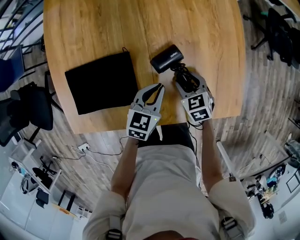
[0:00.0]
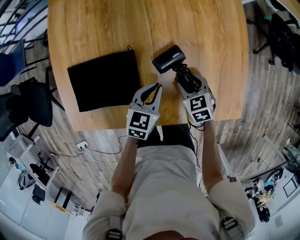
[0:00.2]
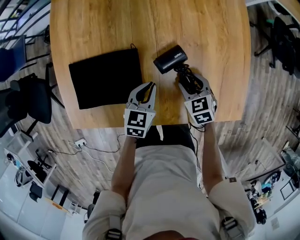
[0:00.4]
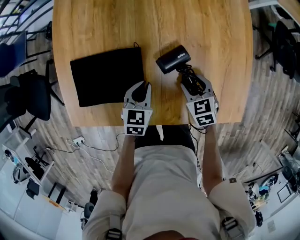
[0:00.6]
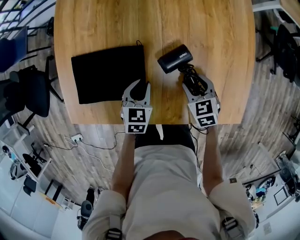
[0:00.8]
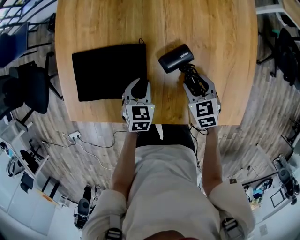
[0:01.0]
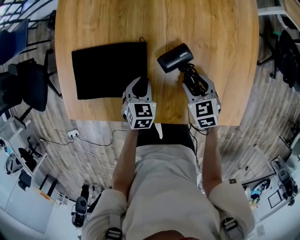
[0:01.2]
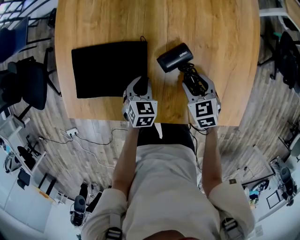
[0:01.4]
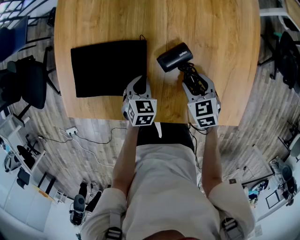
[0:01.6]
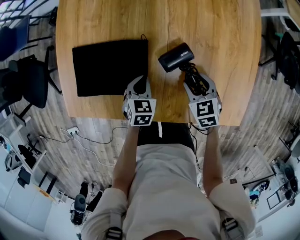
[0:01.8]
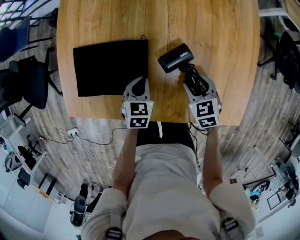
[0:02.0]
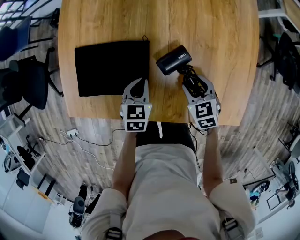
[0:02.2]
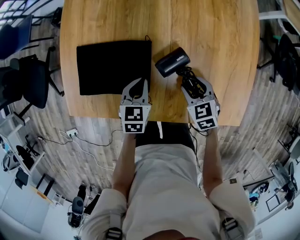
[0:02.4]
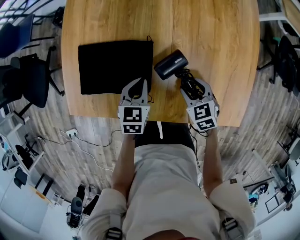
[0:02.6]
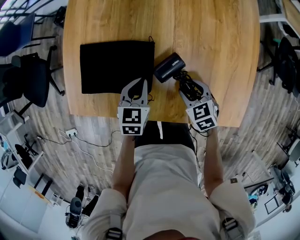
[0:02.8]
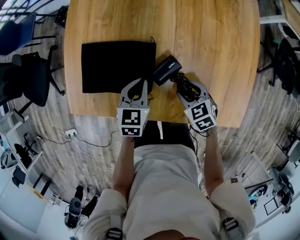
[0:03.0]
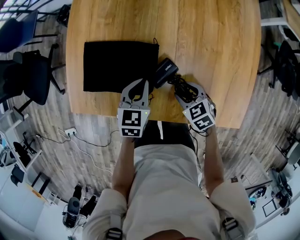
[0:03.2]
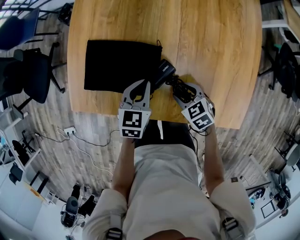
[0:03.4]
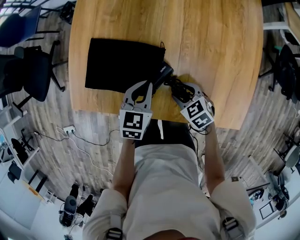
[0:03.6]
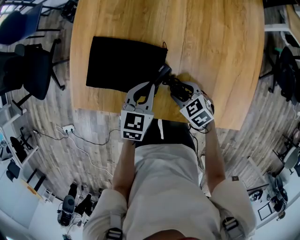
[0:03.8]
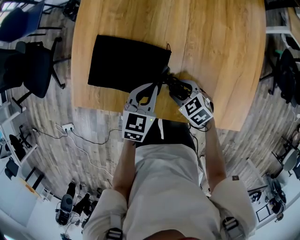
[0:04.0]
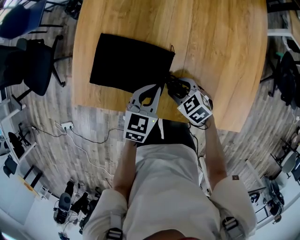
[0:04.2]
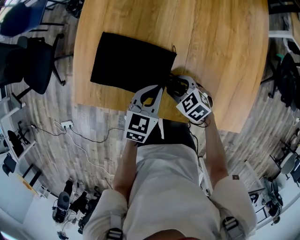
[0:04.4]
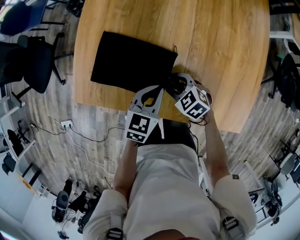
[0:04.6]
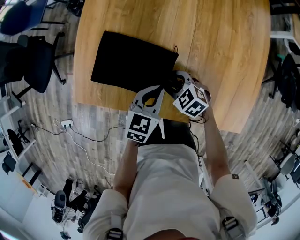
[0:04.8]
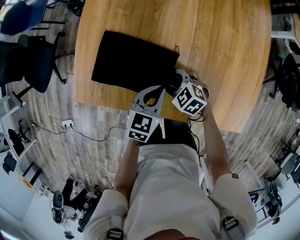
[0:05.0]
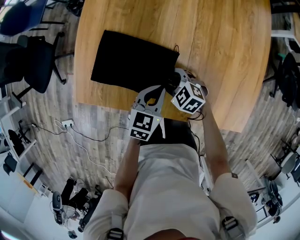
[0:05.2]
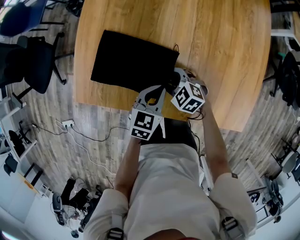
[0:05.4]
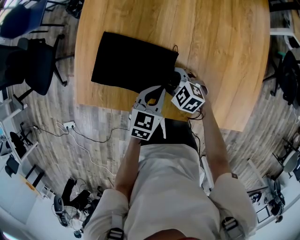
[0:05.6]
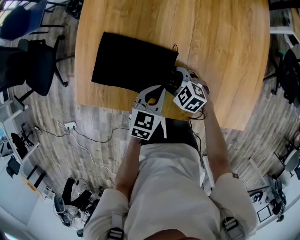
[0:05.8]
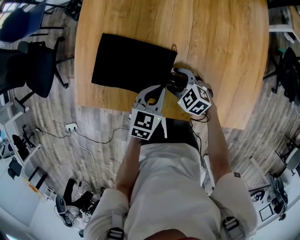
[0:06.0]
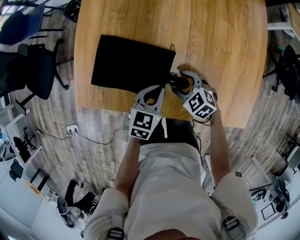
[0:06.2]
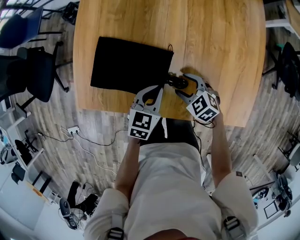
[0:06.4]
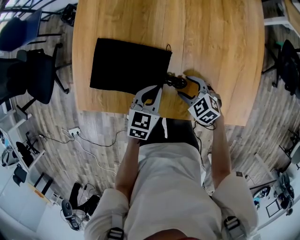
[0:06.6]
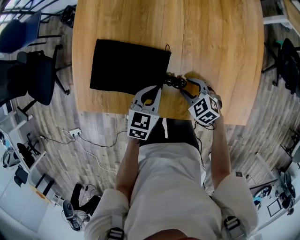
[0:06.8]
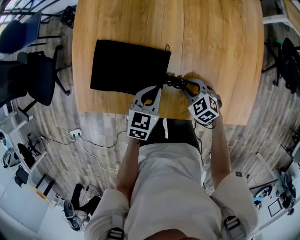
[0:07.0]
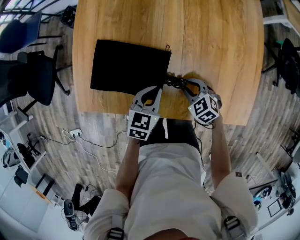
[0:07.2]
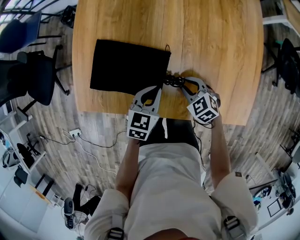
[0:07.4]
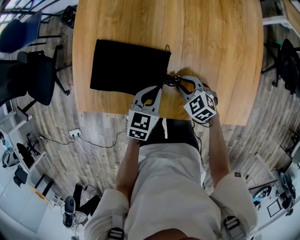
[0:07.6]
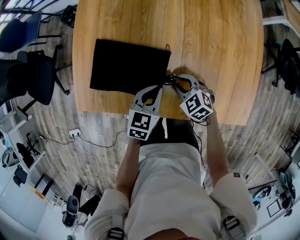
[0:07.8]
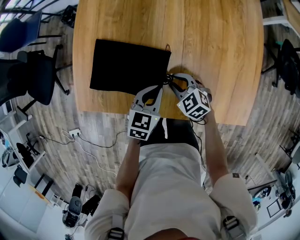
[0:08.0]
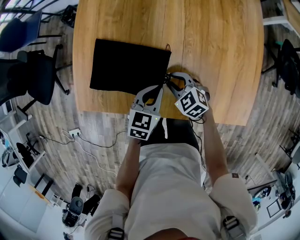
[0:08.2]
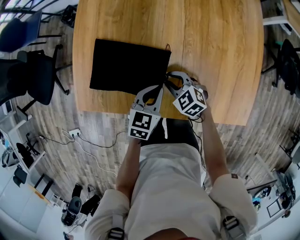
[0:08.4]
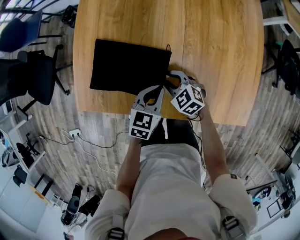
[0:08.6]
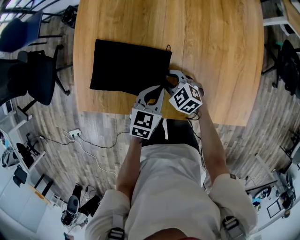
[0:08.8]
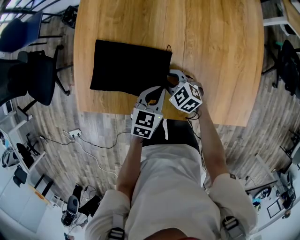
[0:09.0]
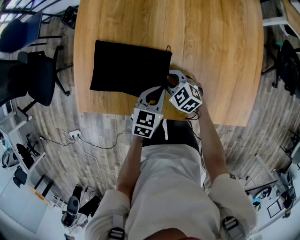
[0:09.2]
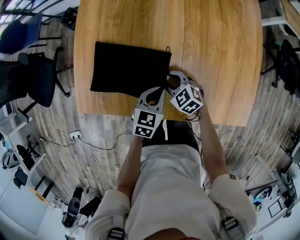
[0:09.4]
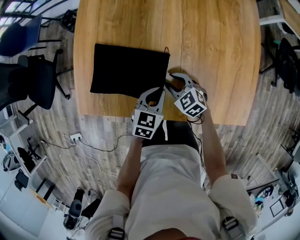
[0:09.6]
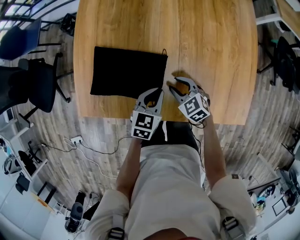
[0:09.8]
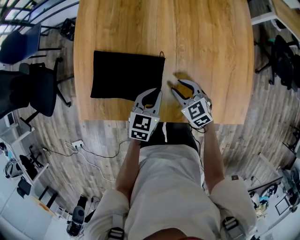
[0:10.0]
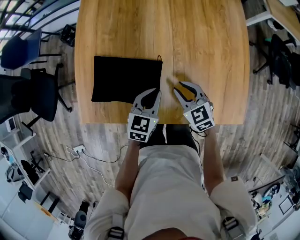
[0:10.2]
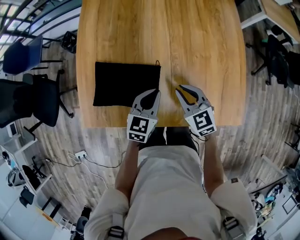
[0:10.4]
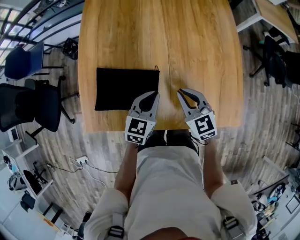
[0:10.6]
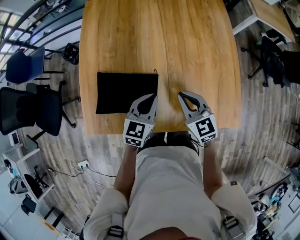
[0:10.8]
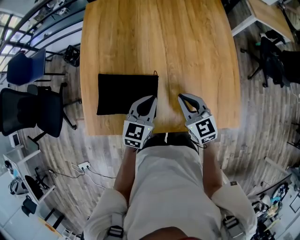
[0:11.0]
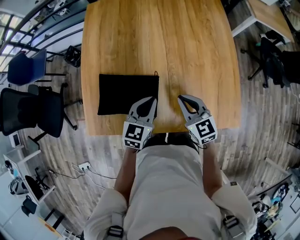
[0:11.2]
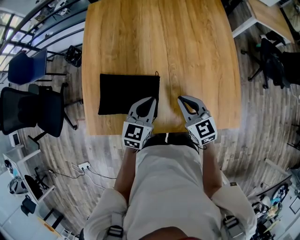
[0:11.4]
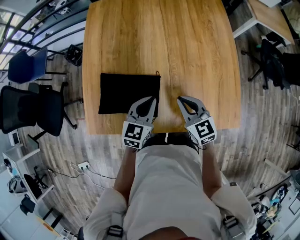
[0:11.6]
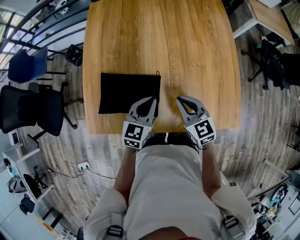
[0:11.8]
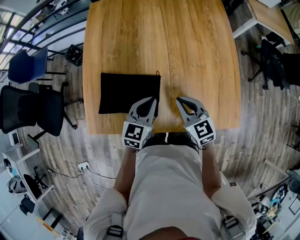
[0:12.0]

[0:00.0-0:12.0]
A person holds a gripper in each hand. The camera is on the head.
0:00.0 to 0:01.6: The left gripper moves to the left and downward, some 15 cm, and turns by roughly 30 degrees.
0:01.6 to 0:03.0: The right gripper heads to the left, covering some 5 cm. Meanwhile the left gripper goes approximately 10 cm upward.
0:03.0 to 0:04.4: The right gripper is displaced to the left by some 10 cm, and turns by some 20 degrees.
0:04.4 to 0:06.0: The grippers make only small movements.
0:06.0 to 0:07.6: The right gripper is displaced to the right by roughly 5 cm, and closes.
0:07.6 to 0:09.0: The right gripper travels to the left by about 5 cm.
0:09.0 to 0:10.4: The left gripper heads upward, covering some 5 cm, while the right gripper travels upward and to the right by some 15 cm, and turns by about 30 degrees.
0:10.4 to 0:12.0: The grippers move only a little.

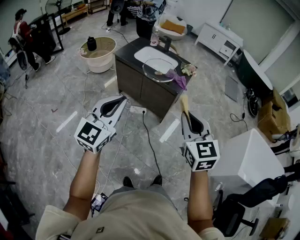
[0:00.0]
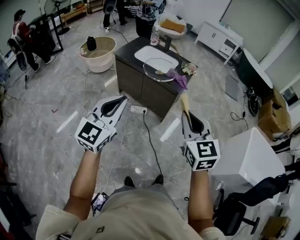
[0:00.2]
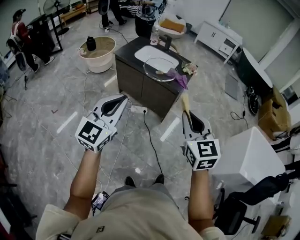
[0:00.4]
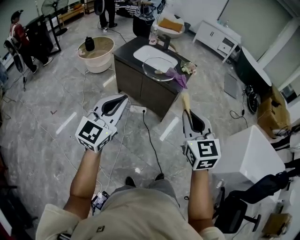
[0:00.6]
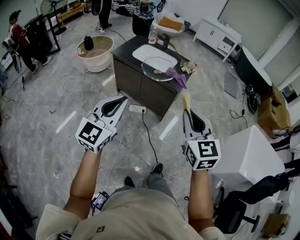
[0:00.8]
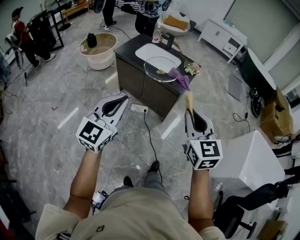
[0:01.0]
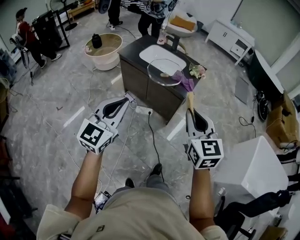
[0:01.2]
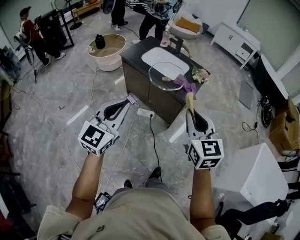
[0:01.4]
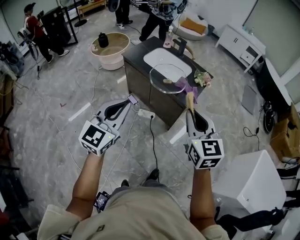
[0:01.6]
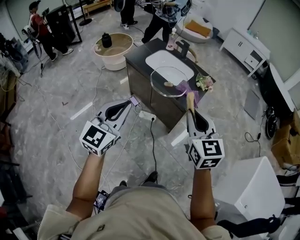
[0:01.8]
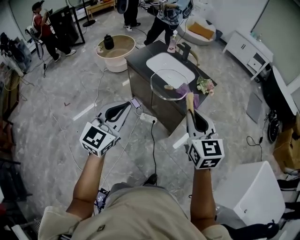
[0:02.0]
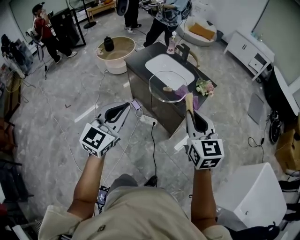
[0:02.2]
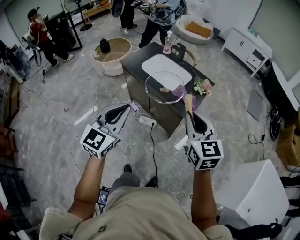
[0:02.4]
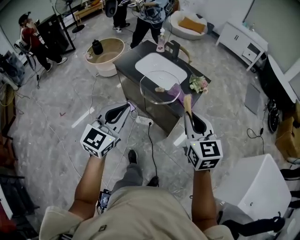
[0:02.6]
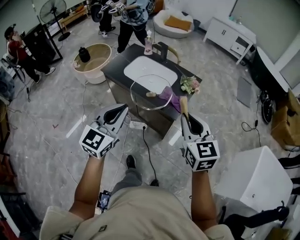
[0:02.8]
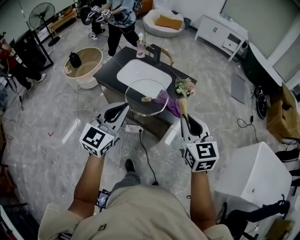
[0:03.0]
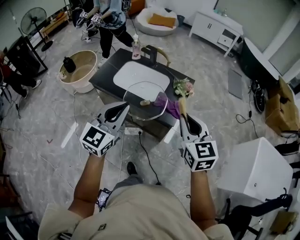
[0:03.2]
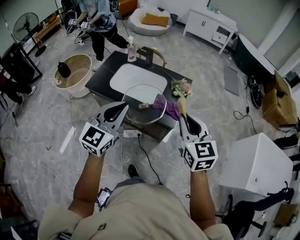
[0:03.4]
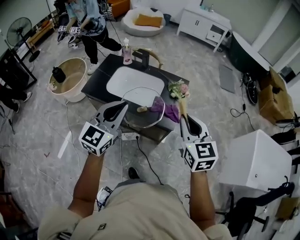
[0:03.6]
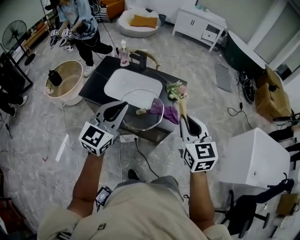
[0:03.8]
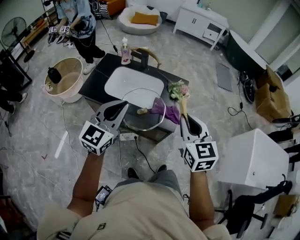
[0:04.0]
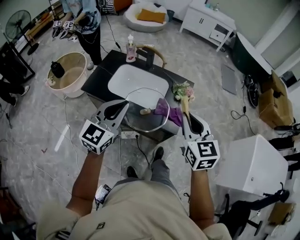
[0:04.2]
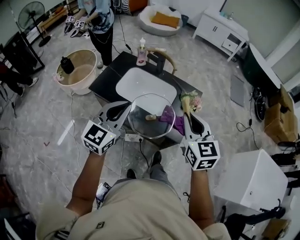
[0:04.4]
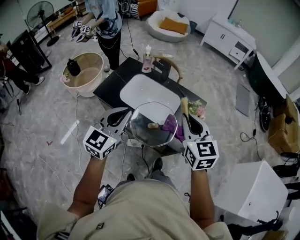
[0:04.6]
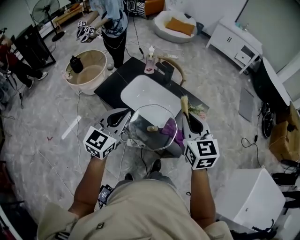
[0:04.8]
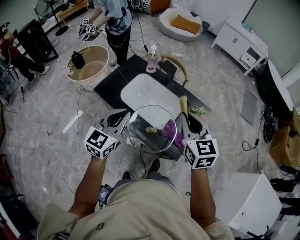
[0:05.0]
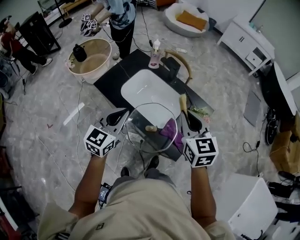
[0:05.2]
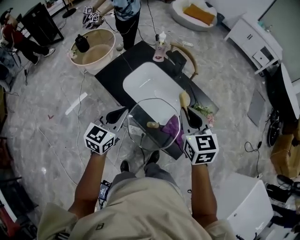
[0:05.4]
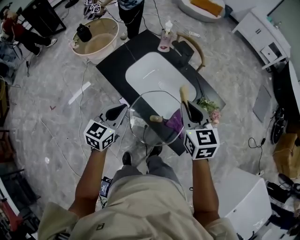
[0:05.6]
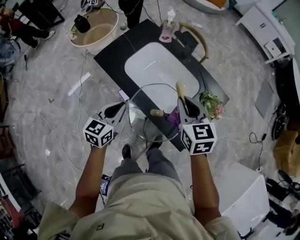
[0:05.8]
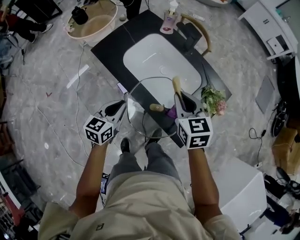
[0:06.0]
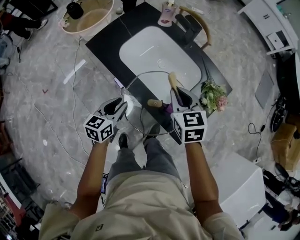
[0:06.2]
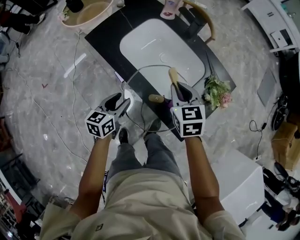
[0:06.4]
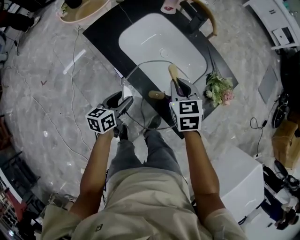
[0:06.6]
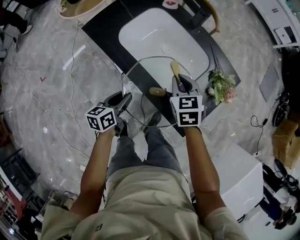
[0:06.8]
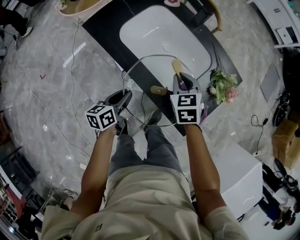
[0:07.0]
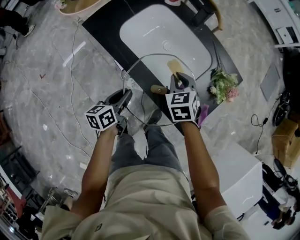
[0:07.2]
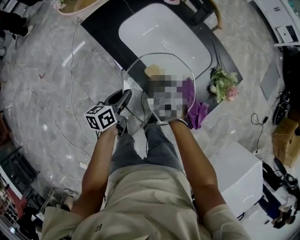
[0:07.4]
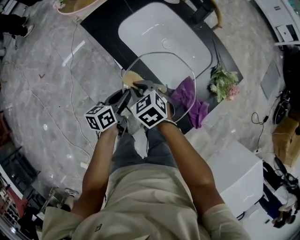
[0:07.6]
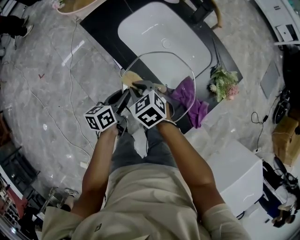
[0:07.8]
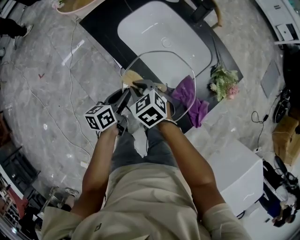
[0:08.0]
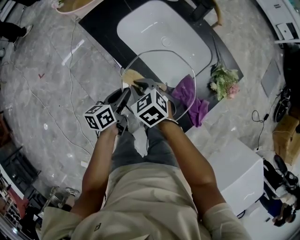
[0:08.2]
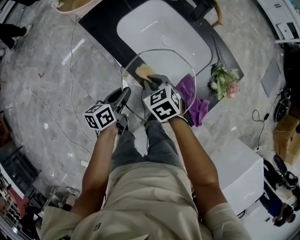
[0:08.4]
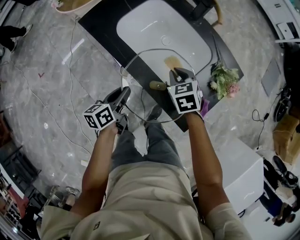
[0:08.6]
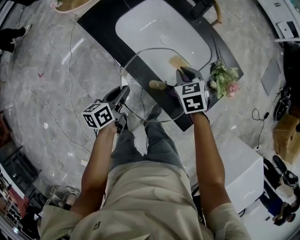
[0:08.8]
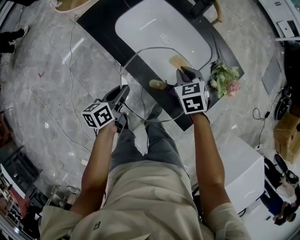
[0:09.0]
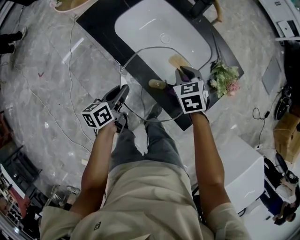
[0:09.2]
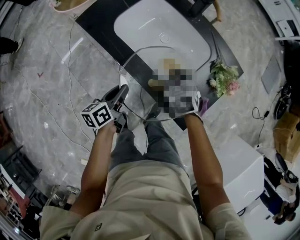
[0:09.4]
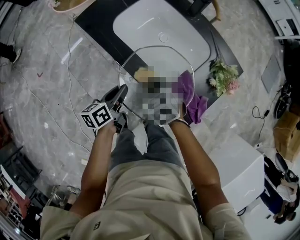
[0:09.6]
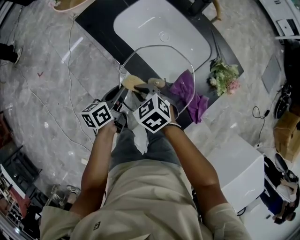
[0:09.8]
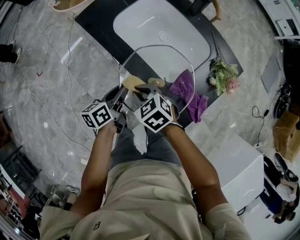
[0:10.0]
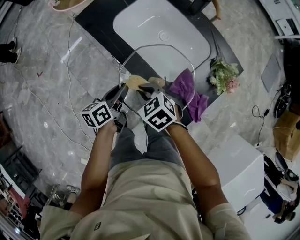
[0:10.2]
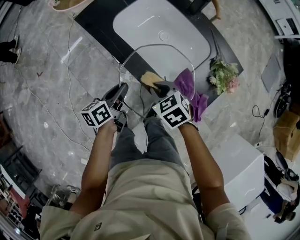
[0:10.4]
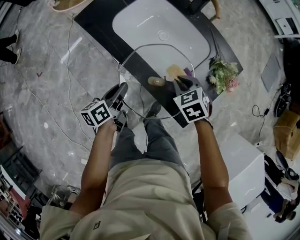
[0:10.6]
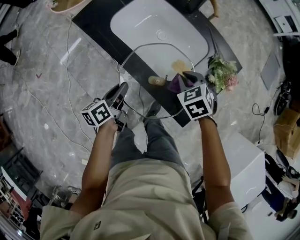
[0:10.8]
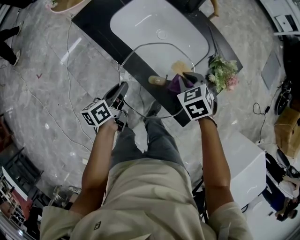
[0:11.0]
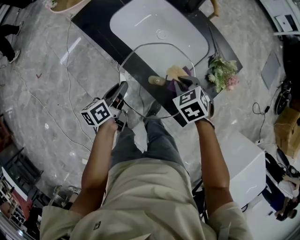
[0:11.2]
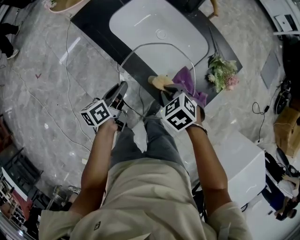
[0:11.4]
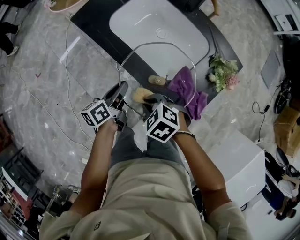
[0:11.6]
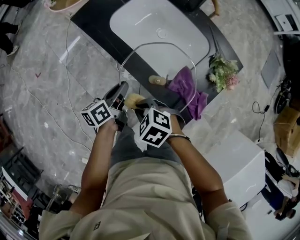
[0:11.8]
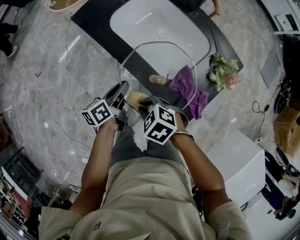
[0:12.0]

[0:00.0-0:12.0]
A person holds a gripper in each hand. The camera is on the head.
0:00.0 to 0:01.6: Both grippers move forward, approximately 15 cm.
0:01.6 to 0:03.0: The grippers both shift forward by some 20 cm.
0:03.0 to 0:04.4: Both grippers travel together forward and to the left, about 20 cm.
0:04.4 to 0:06.0: The right gripper shifts roughly 25 cm downward and forward, and rotates approximately 30 degrees, while the left gripper shifts roughly 25 cm downward, and swivels approximately 40 degrees.
0:06.0 to 0:07.6: The right gripper moves downward and to the left, roughly 25 cm, and turns by roughly 30 degrees; the left gripper heads downward, covering roughly 10 cm, turns by roughly 30 degrees, and opens and closes again.
0:07.6 to 0:09.0: The right gripper goes approximately 20 cm to the right, and rotates approximately 20 degrees.
0:09.0 to 0:10.4: The right gripper heads to the left and backward, covering roughly 15 cm, and changes its angle by roughly 20 degrees.
0:10.4 to 0:12.0: The right gripper changes place by approximately 10 cm, and swivels about 20 degrees.
